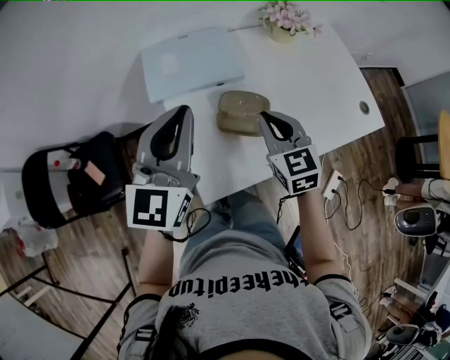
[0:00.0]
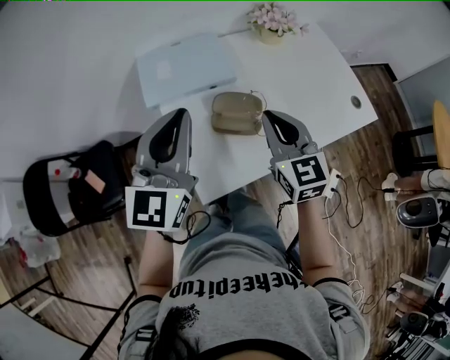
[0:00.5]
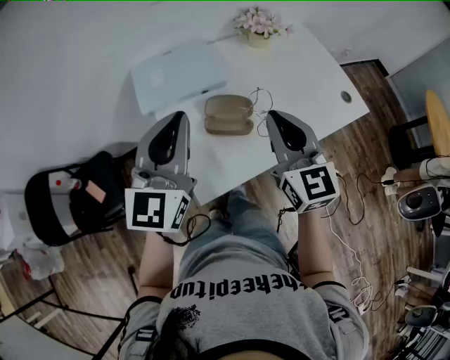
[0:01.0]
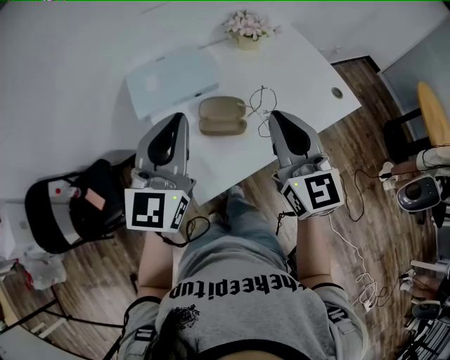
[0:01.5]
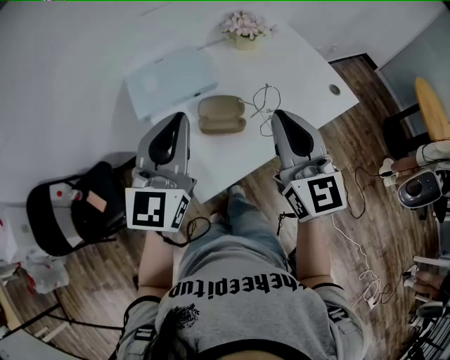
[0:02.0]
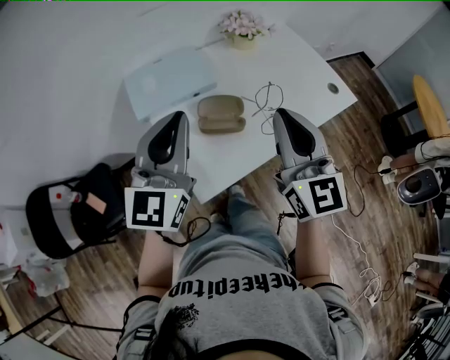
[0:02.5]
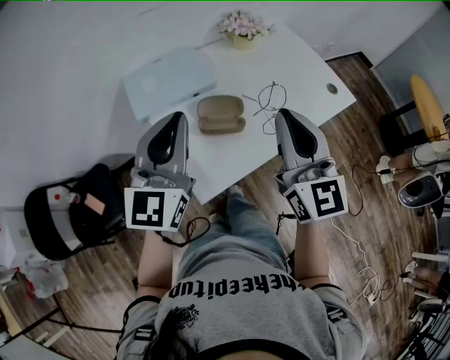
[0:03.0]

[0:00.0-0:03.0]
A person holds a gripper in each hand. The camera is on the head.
0:00.0 to 0:01.5: The left gripper moves about 5 cm. Meanwhile the right gripper goes some 15 cm upward and backward, and turns by roughly 30 degrees.
0:01.5 to 0:03.0: The grippers make only small movements.

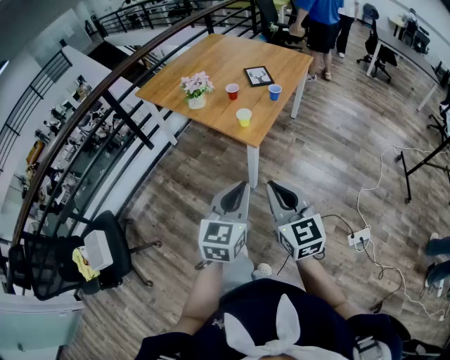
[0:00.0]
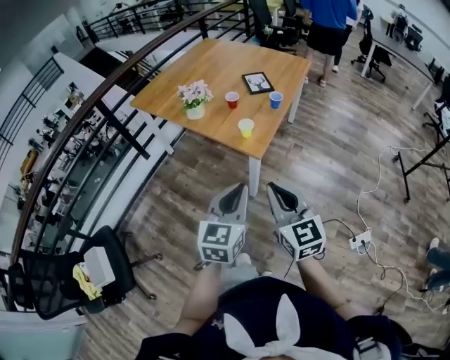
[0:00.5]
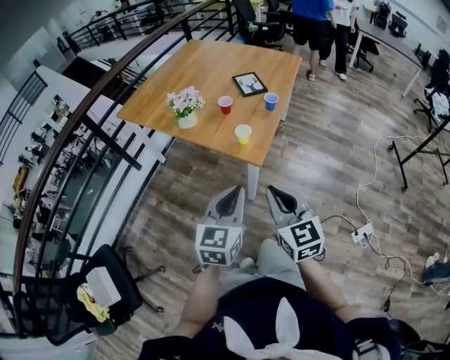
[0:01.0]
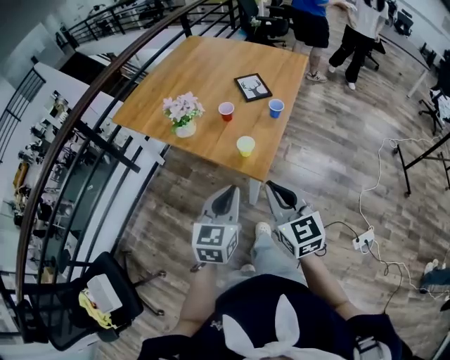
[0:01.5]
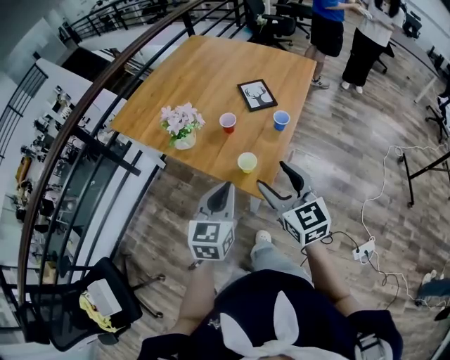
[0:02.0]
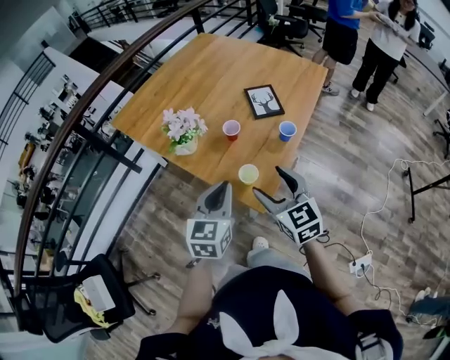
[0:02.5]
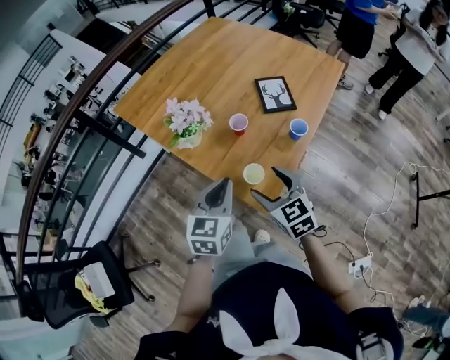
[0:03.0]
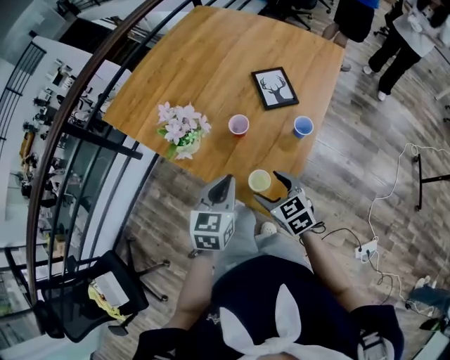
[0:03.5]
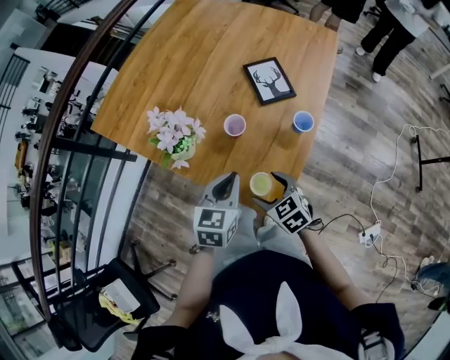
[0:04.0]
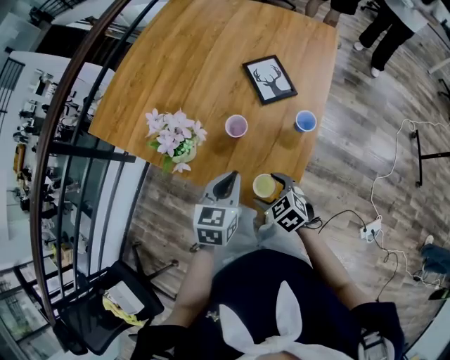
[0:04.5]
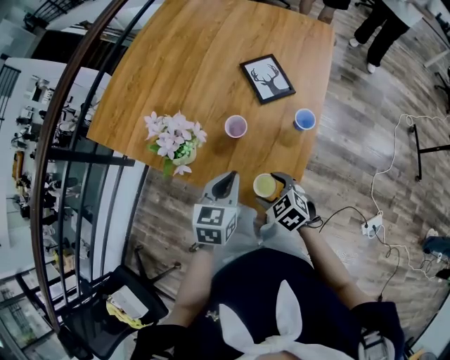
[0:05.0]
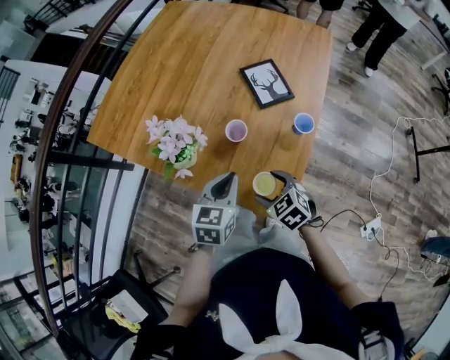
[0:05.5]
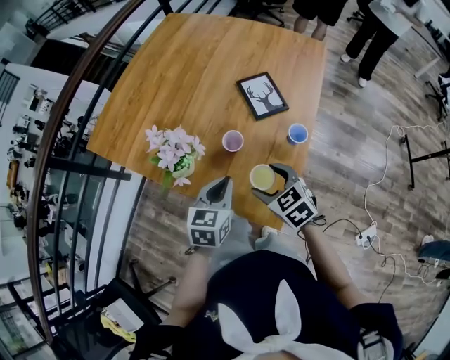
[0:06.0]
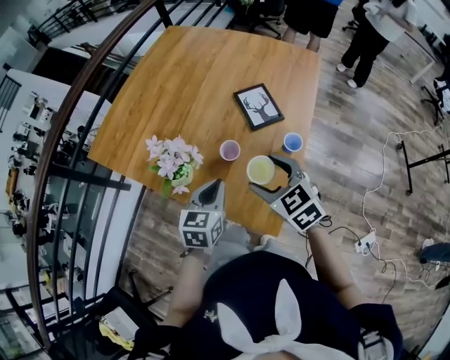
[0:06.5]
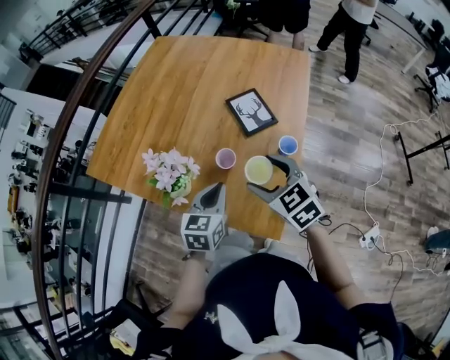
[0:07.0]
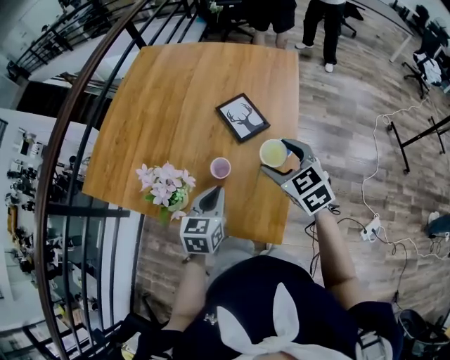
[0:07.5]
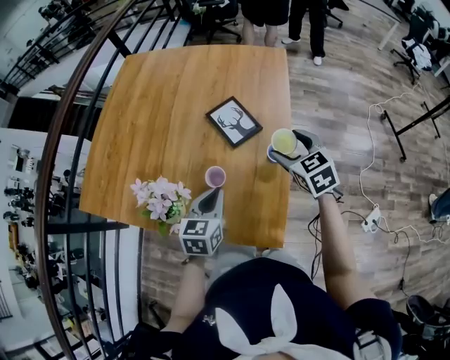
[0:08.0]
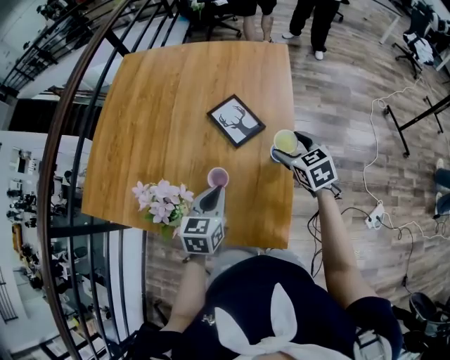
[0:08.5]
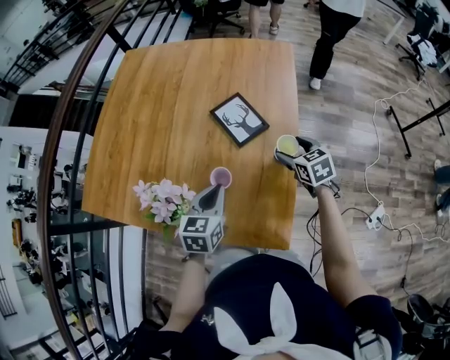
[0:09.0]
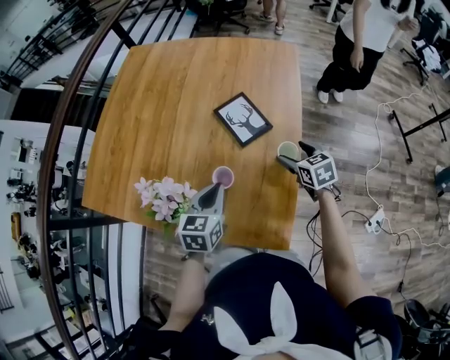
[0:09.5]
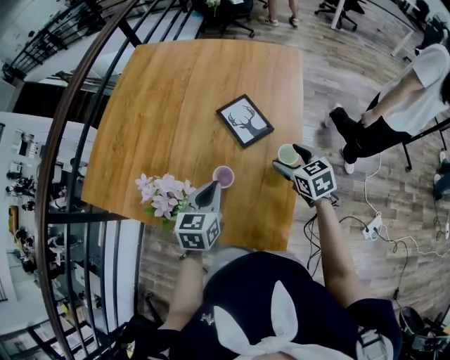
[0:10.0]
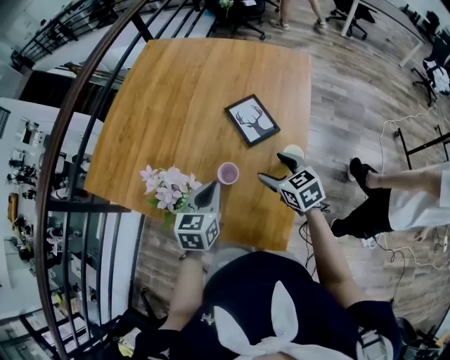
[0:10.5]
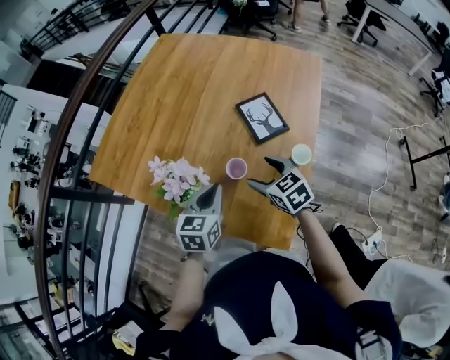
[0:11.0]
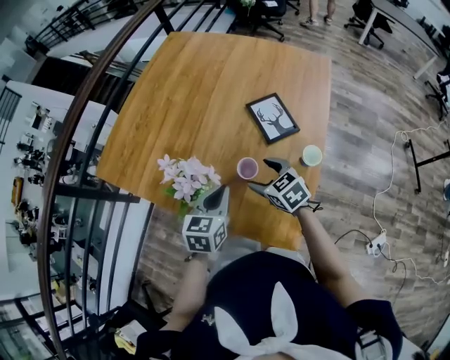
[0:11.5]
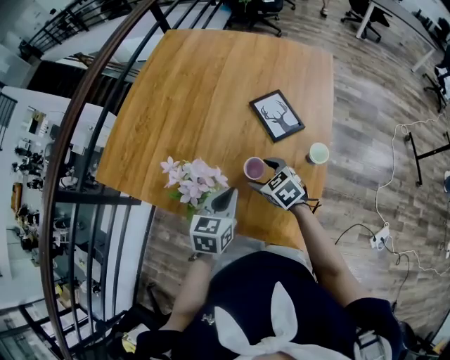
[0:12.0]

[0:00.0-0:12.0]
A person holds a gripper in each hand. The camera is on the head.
0:00.0 to 0:02.0: Both grippers travel together forward, roughly 35 cm. The right gripper opens.
0:02.0 to 0:04.0: The right gripper moves downward and forward, about 25 cm, and angles its fingers downward, by some 30 degrees, while the left gripper shifts approximately 20 cm forward and downward.
0:04.0 to 0:06.0: The right gripper shifts approximately 10 cm upward and forward.
0:06.0 to 0:08.0: The left gripper goes approximately 10 cm forward; the right gripper moves to the right, forward and upward, some 25 cm, and changes its angle by roughly 30 degrees.
0:08.0 to 0:10.0: The right gripper moves downward, about 10 cm.
0:10.0 to 0:12.0: The right gripper goes some 20 cm to the left, and rotates some 20 degrees; the left gripper heads to the left, covering some 5 cm.

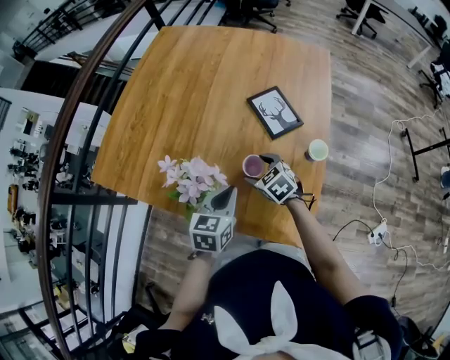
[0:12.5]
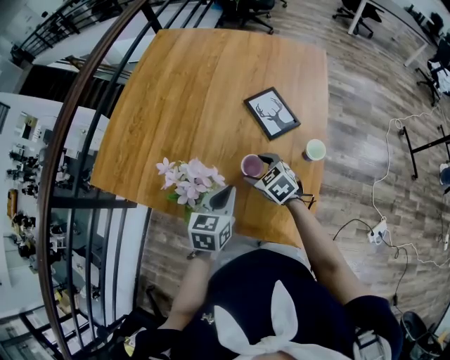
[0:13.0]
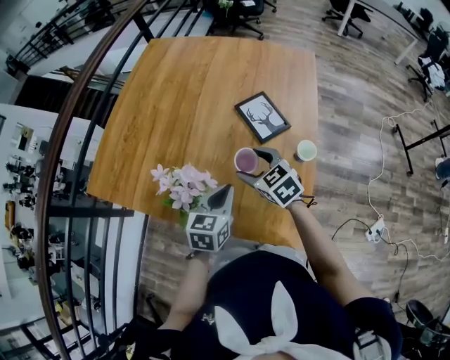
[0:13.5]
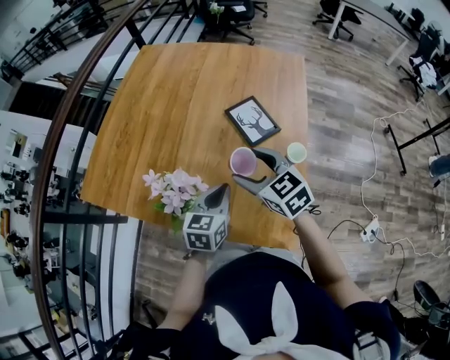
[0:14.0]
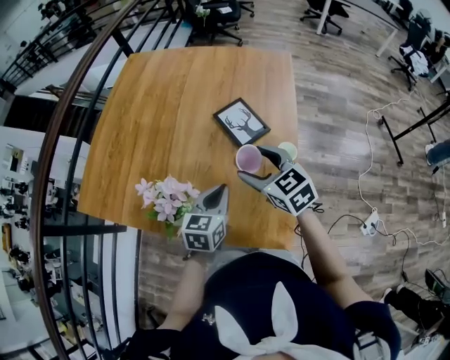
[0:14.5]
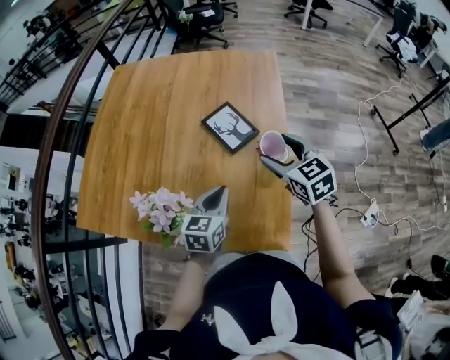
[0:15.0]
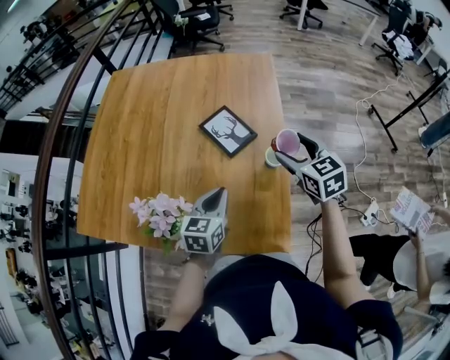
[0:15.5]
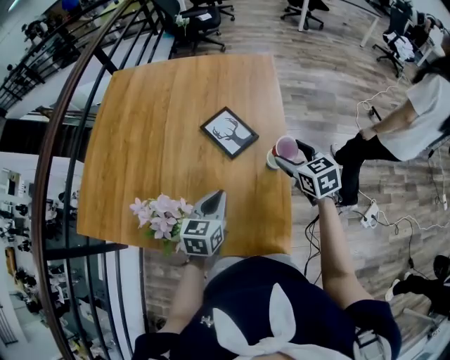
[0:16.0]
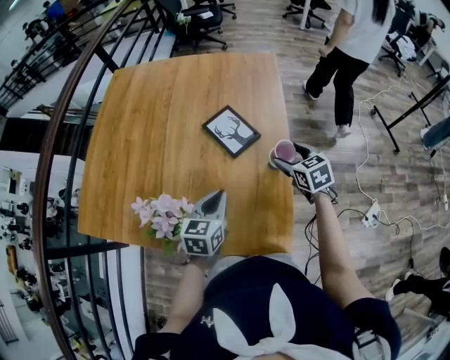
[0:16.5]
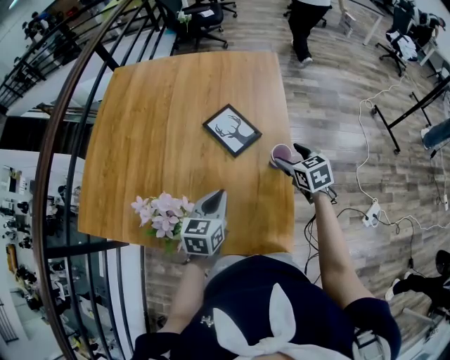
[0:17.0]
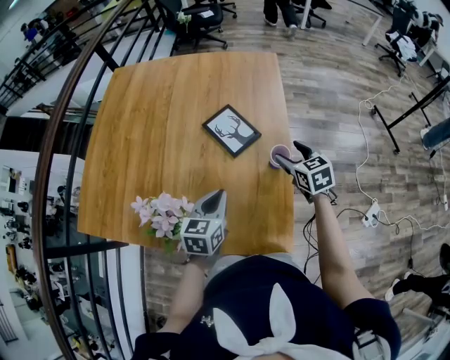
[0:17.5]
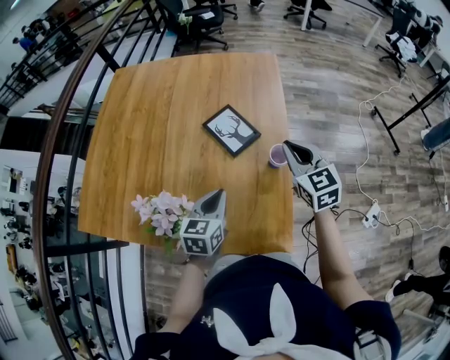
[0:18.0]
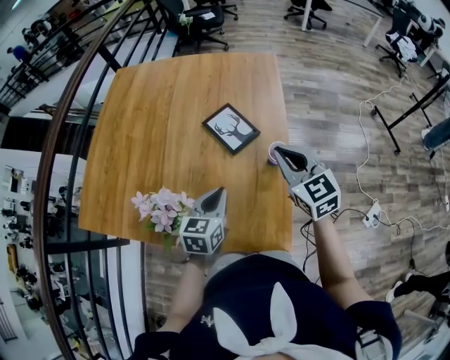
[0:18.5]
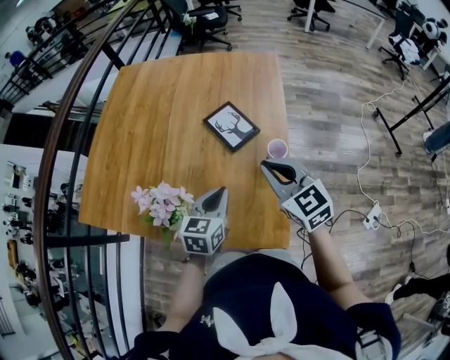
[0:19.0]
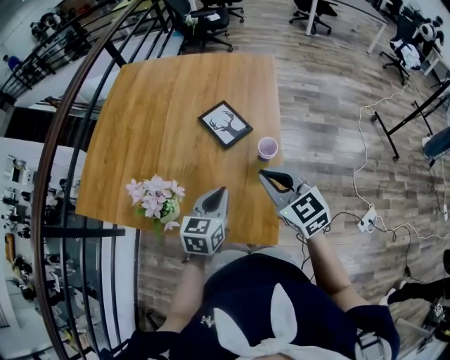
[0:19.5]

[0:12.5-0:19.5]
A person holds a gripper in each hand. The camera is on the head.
0:12.5 to 0:14.5: The left gripper is displaced to the right by roughly 5 cm, while the right gripper shifts some 20 cm upward and to the right, and swivels some 20 degrees.
0:14.5 to 0:16.0: The right gripper travels to the right by about 15 cm, and turns by some 20 degrees.
0:17.5 to 0:19.5: The left gripper moves backward, roughly 5 cm. The right gripper moves backward, upward and to the left, roughly 20 cm, changes its angle by approximately 30 degrees, and closes its fingers.

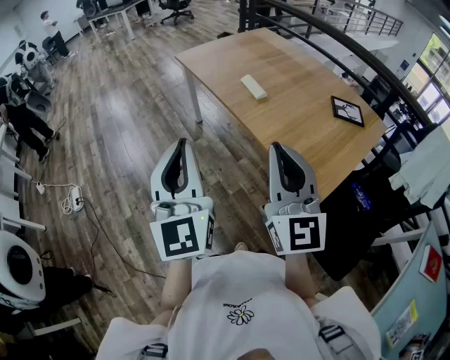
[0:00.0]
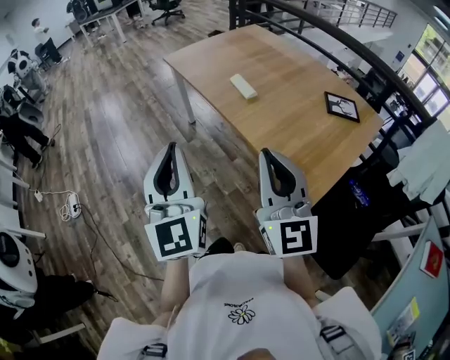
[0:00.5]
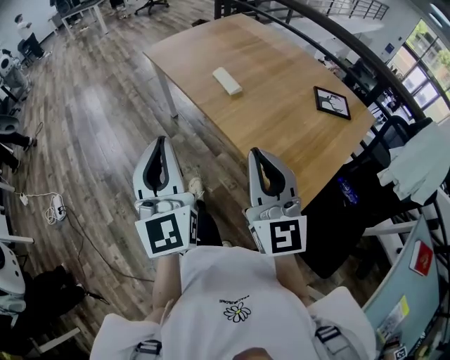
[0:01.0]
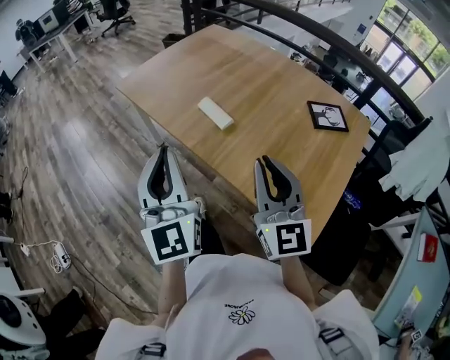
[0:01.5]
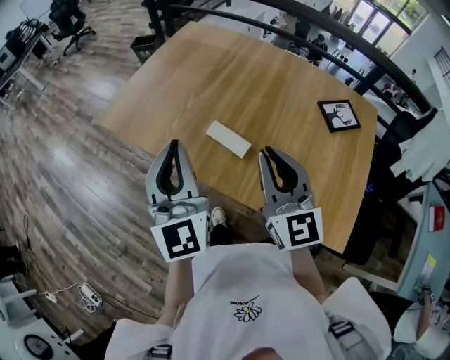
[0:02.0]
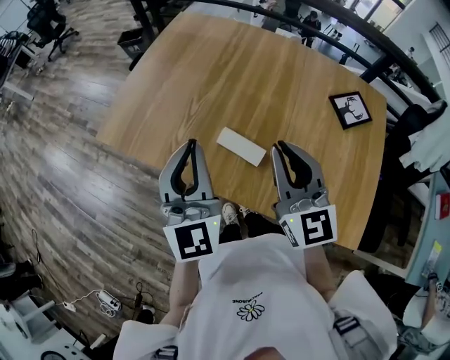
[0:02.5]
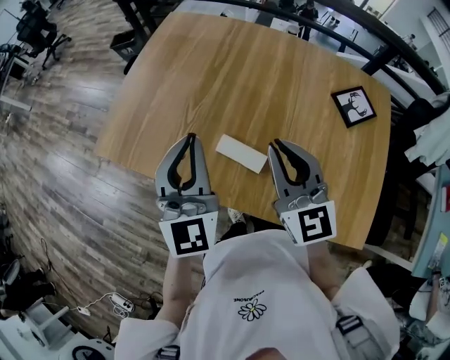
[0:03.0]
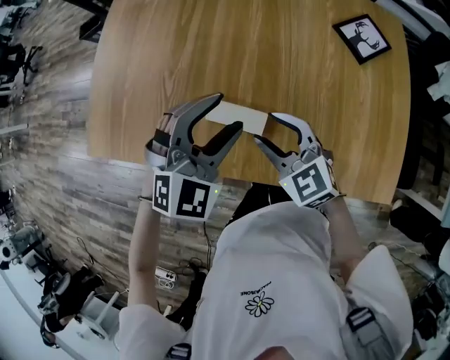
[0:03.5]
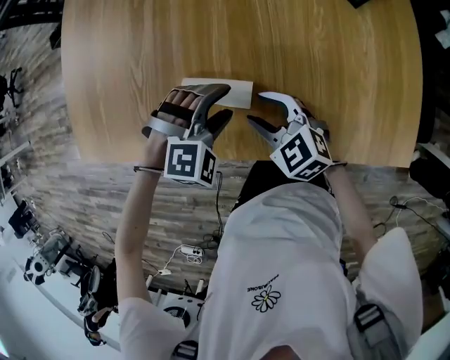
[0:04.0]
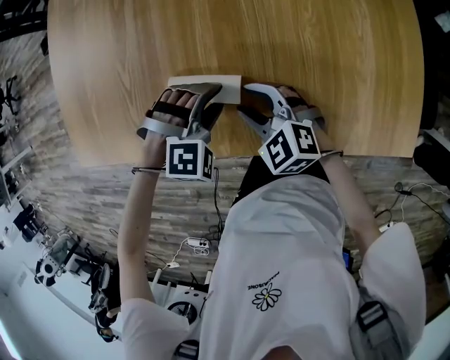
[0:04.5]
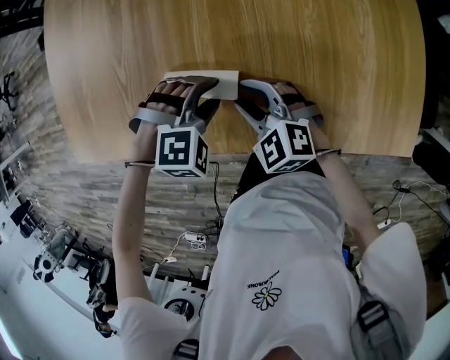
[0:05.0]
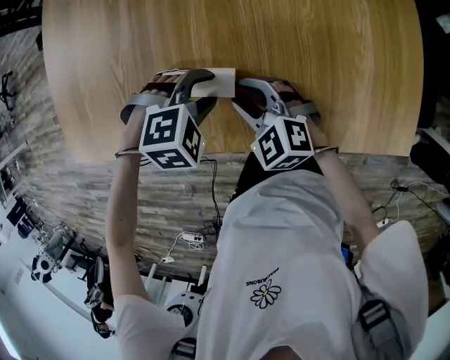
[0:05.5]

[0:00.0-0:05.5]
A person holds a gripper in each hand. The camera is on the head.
0:00.0 to 0:02.0: Both grippers travel together forward, about 40 cm. The right gripper rotates about 20 degrees. The left gripper changes its angle by approximately 20 degrees.
0:02.0 to 0:03.5: The right gripper is displaced downward by approximately 20 cm, tips its fingers downward by approximately 30 degrees, and opens up, while the left gripper changes place by roughly 25 cm, points its fingers roughly 40 degrees further downward, and opens.
0:03.5 to 0:05.5: The left gripper shifts roughly 20 cm downward, and points its fingers roughly 40 degrees further downward. The right gripper travels downward by roughly 10 cm.
